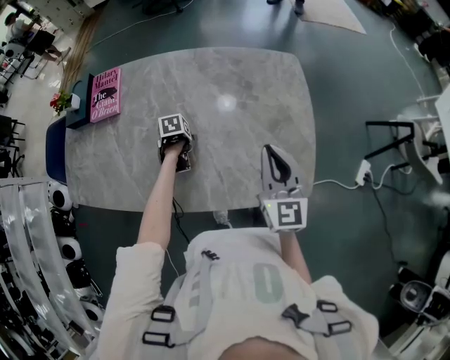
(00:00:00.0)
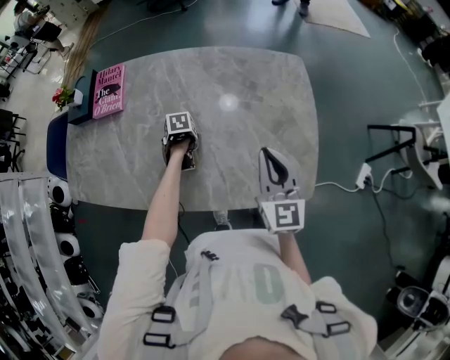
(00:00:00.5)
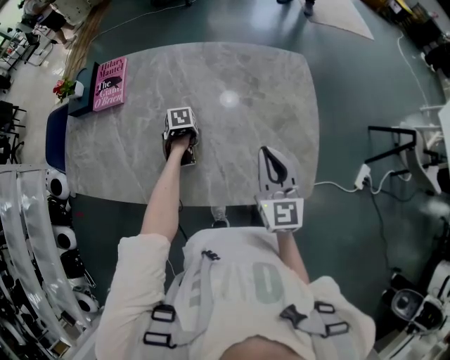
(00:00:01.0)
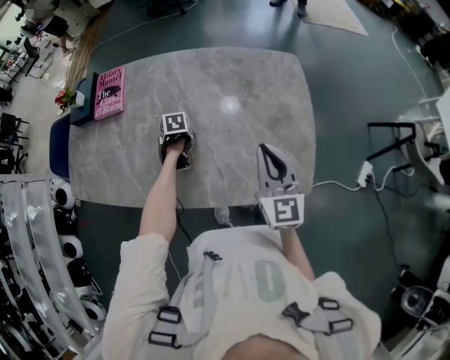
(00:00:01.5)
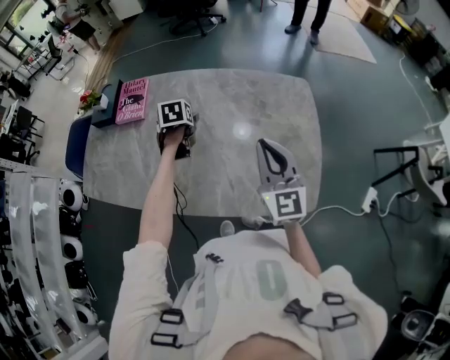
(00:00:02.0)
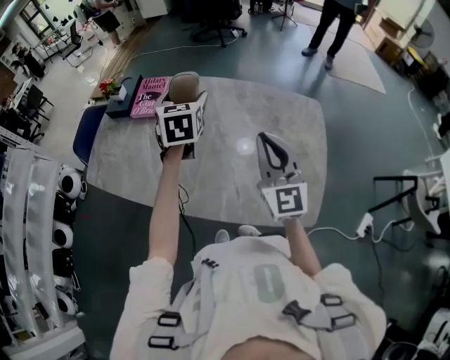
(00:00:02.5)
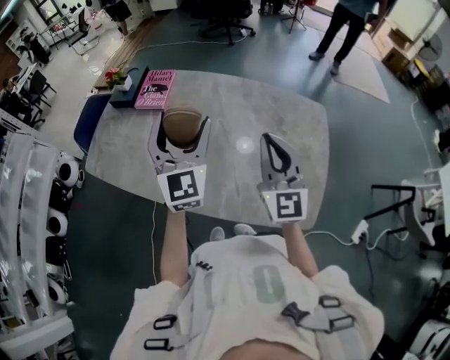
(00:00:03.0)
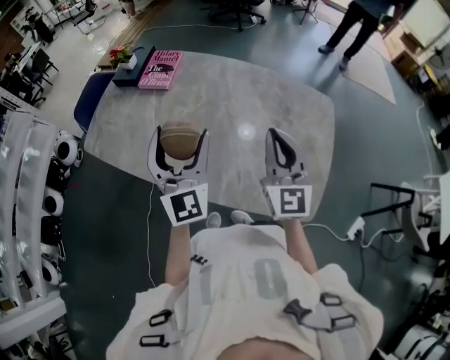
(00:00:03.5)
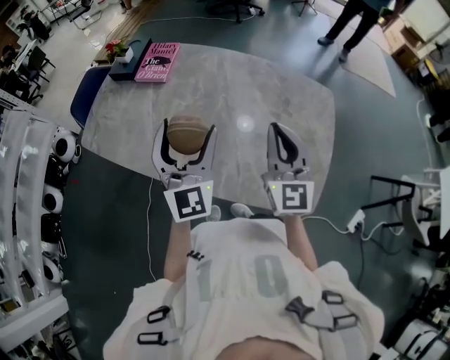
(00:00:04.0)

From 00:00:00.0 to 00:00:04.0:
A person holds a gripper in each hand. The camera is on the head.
From 00:00:00.0 to 00:00:02.0: The right gripper changes place by about 5 cm. The left gripper shifts some 15 cm upward, and changes its angle by approximately 30 degrees.
From 00:00:02.0 to 00:00:04.0: The right gripper shifts approximately 5 cm to the left. Meanwhile the left gripper shifts about 30 cm upward and backward, and tips its fingers upward by approximately 70 degrees.

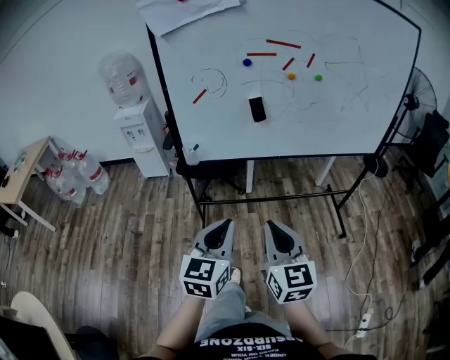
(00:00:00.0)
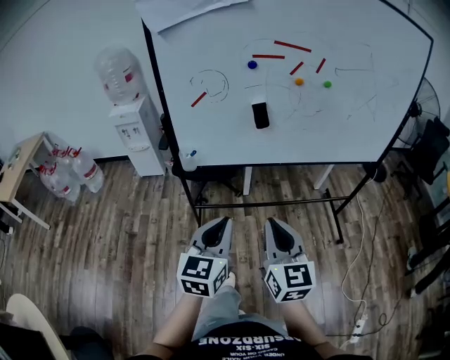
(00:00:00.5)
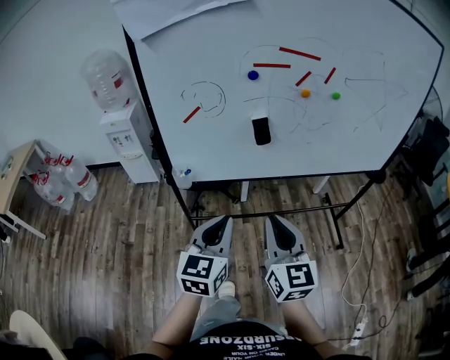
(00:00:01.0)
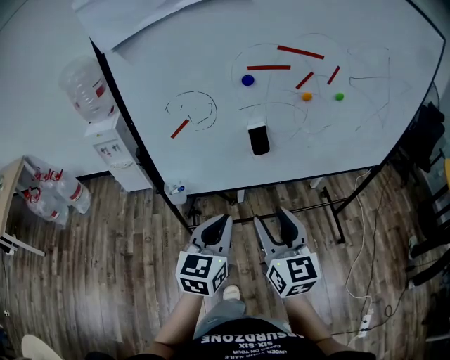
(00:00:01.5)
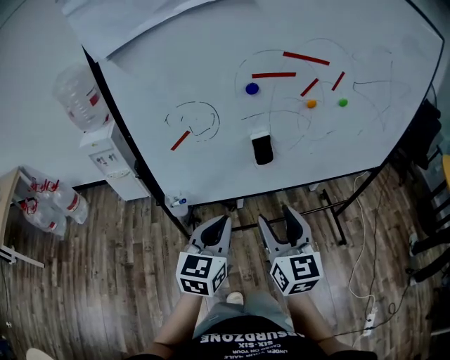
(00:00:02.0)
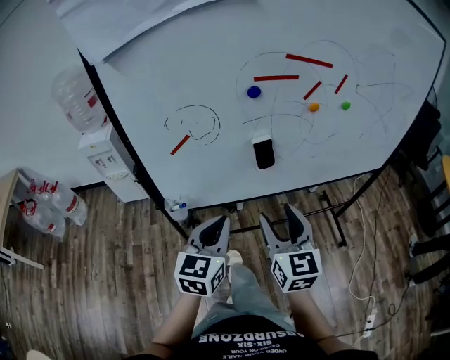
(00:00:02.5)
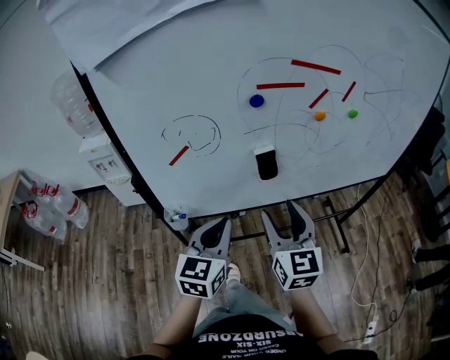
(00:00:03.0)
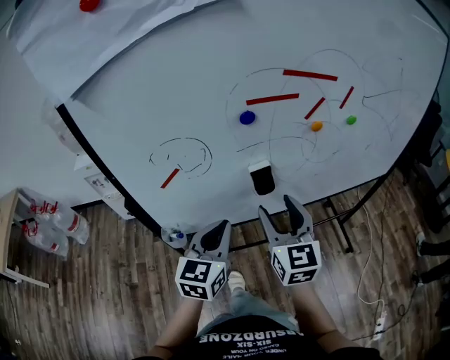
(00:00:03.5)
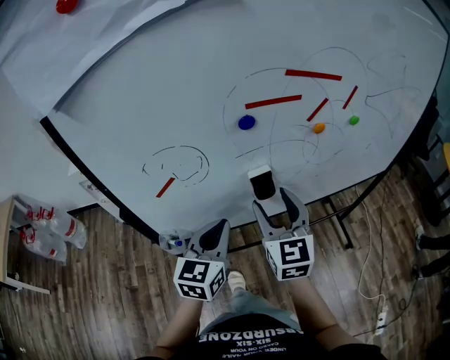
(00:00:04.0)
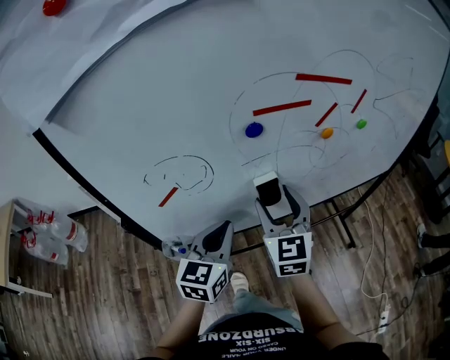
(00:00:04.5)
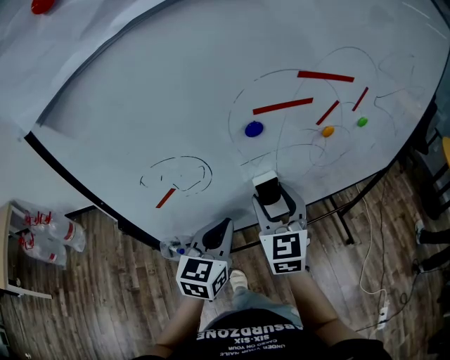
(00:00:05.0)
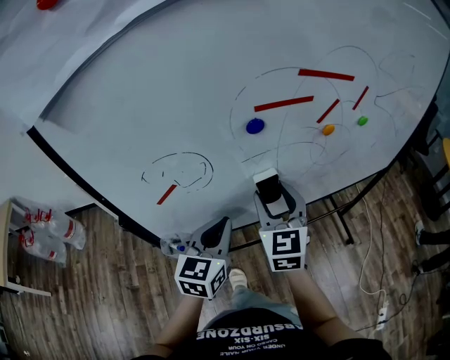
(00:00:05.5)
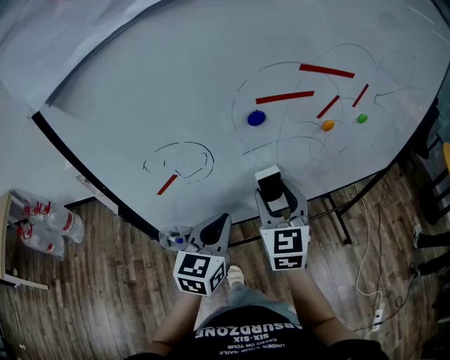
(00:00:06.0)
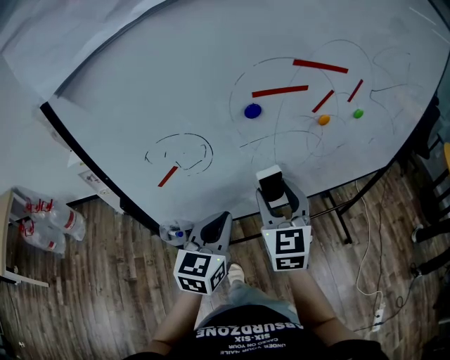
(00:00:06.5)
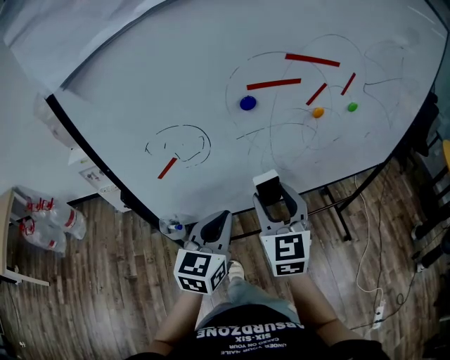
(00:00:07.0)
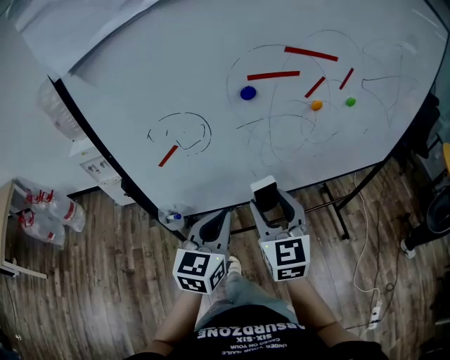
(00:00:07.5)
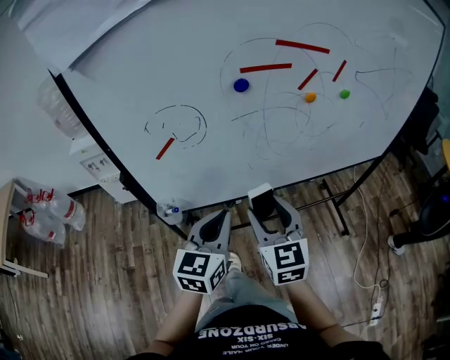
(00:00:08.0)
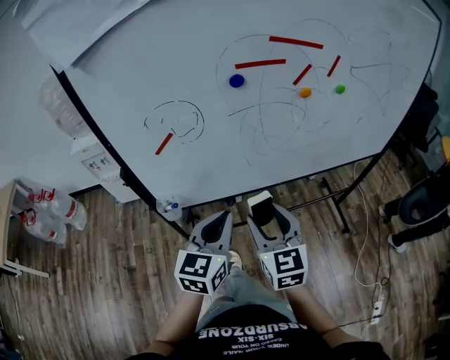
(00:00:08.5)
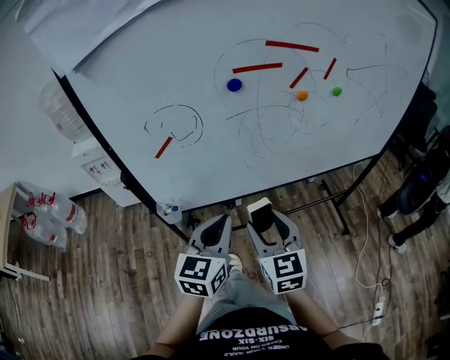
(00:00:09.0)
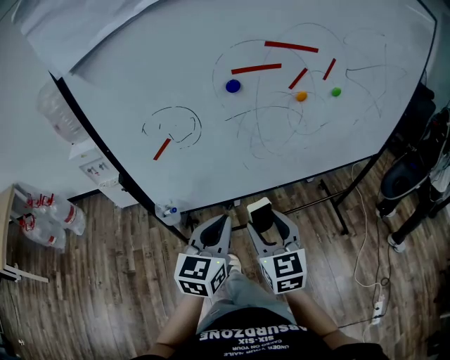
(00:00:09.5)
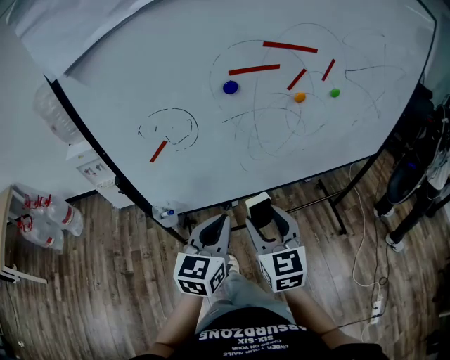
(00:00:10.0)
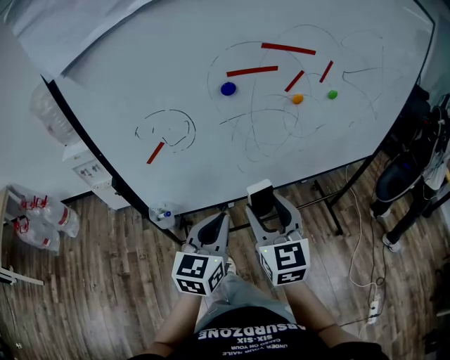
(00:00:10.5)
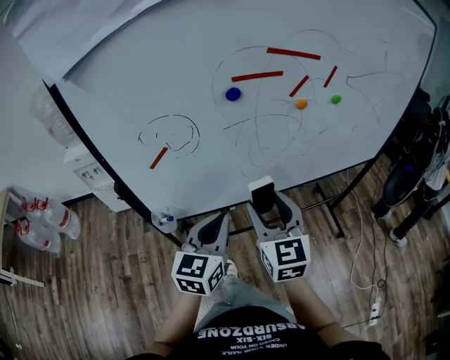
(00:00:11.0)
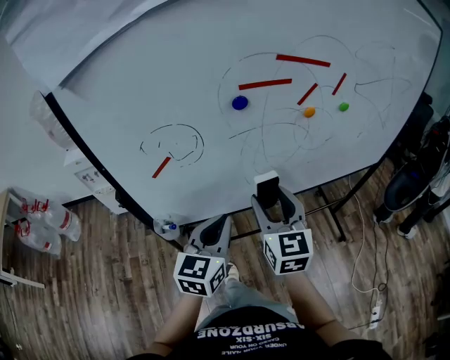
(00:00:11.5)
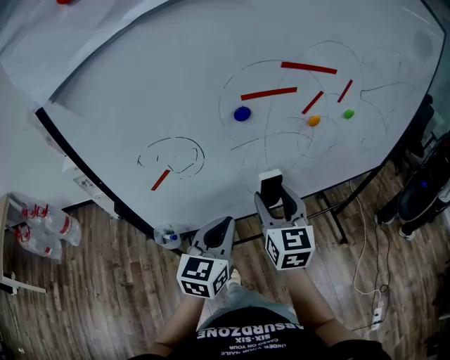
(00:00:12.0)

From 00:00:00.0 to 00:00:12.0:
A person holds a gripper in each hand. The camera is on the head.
From 00:00:00.0 to 00:00:02.0: Both grippers travel together forward, approximately 30 cm. The right gripper opens up.
From 00:00:02.0 to 00:00:04.0: Both grippers move forward, some 15 cm.
From 00:00:04.0 to 00:00:06.0: The grippers move only a little.
From 00:00:06.0 to 00:00:08.0: The two grippers go some 10 cm backward.
From 00:00:08.0 to 00:00:10.0: The grippers stay close to where they were, moving slightly.
From 00:00:10.0 to 00:00:12.0: The left gripper travels forward by approximately 5 cm, while the right gripper moves forward, some 10 cm.

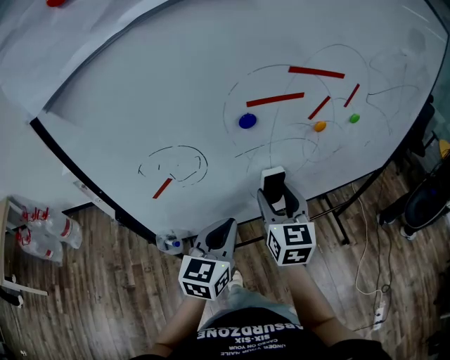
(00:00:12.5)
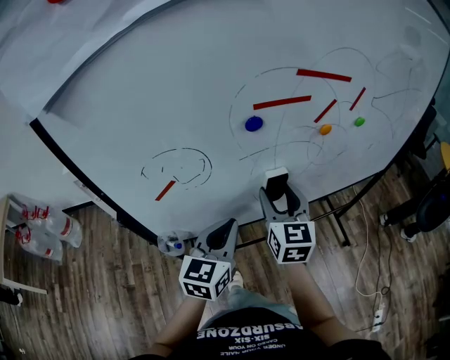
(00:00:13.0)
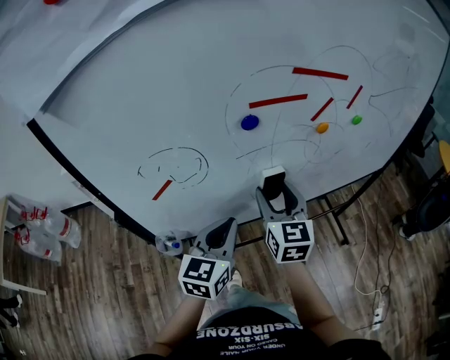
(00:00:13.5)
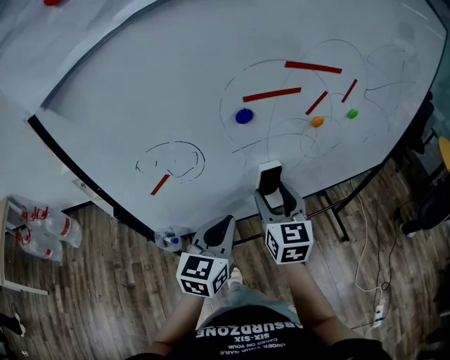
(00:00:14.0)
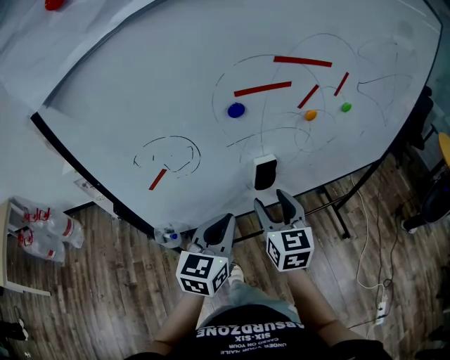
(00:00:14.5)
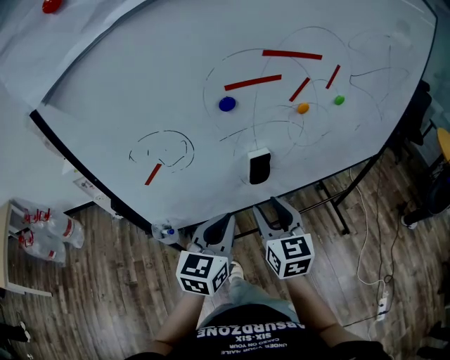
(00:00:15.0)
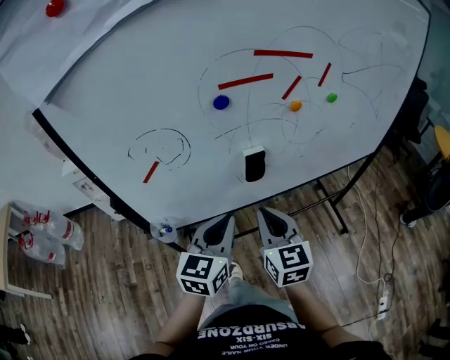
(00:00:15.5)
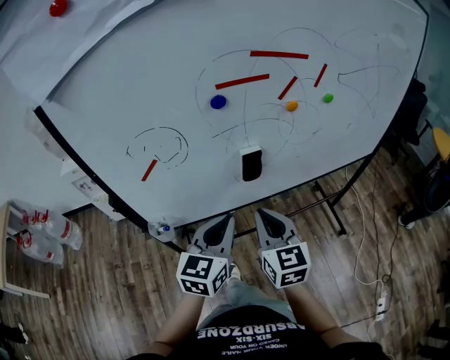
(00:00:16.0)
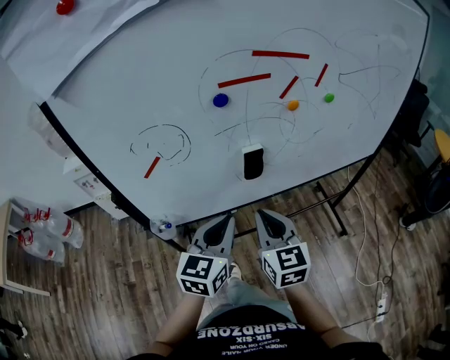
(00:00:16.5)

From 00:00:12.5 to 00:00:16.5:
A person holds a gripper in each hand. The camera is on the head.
From 00:00:12.5 to 00:00:14.5: The grippers move only a little.
From 00:00:14.5 to 00:00:16.5: The right gripper shifts about 10 cm backward, and closes.

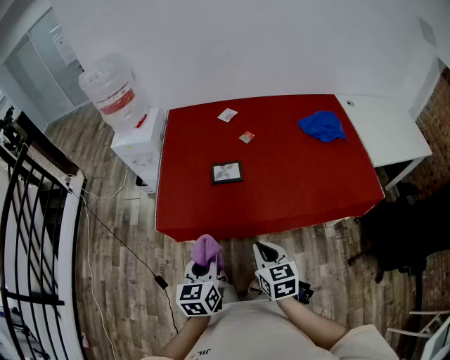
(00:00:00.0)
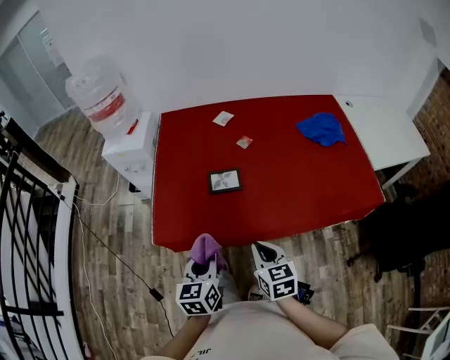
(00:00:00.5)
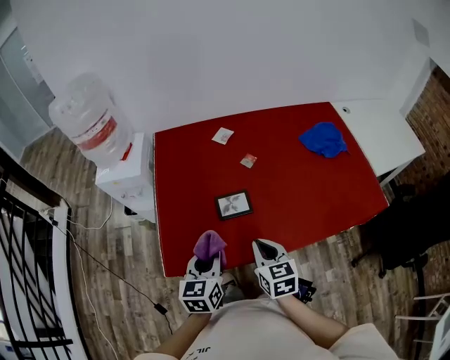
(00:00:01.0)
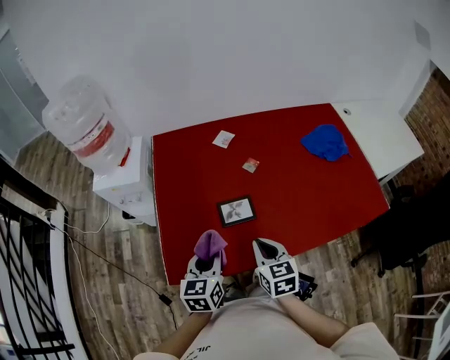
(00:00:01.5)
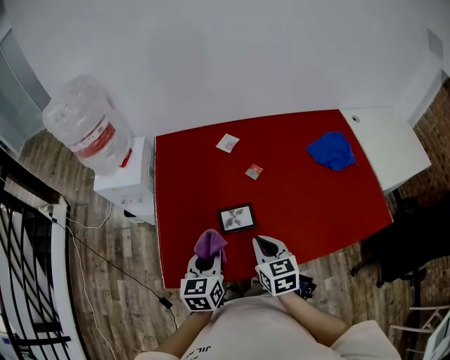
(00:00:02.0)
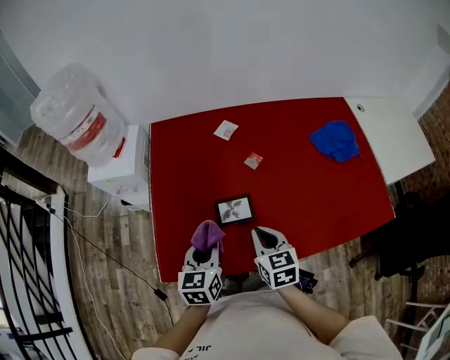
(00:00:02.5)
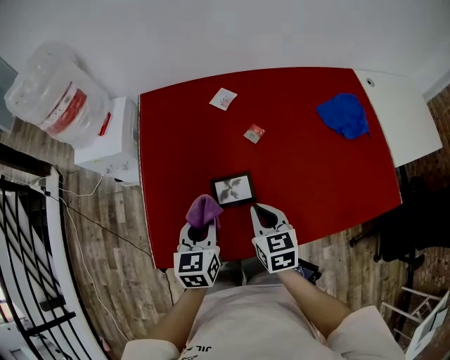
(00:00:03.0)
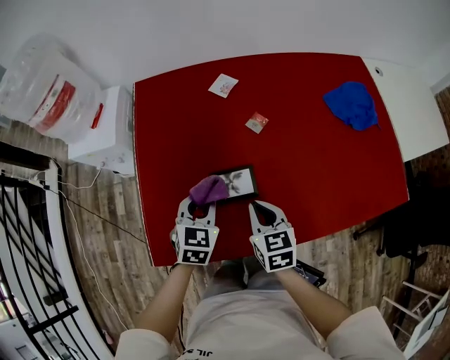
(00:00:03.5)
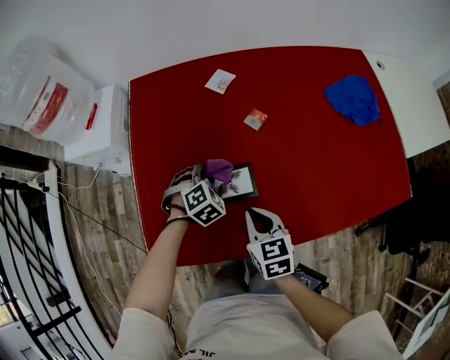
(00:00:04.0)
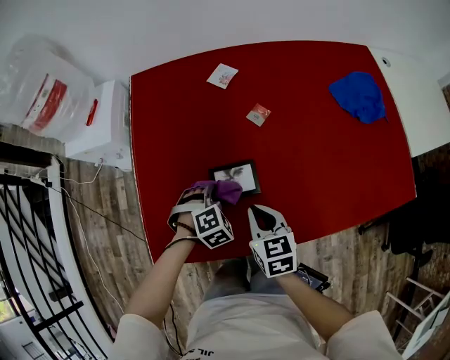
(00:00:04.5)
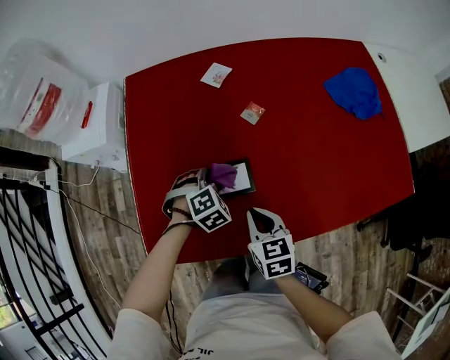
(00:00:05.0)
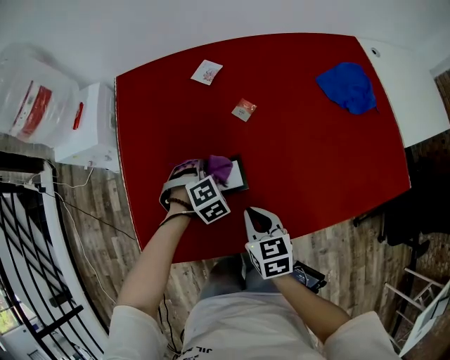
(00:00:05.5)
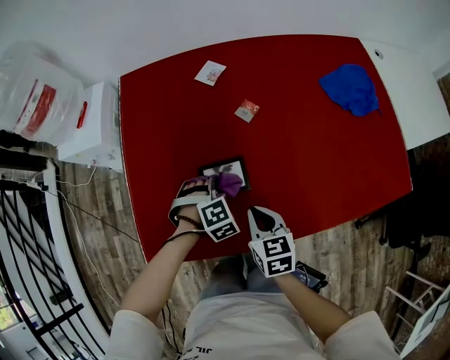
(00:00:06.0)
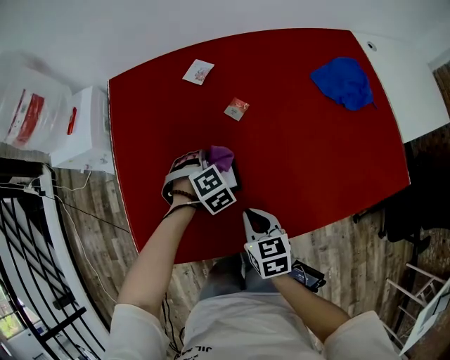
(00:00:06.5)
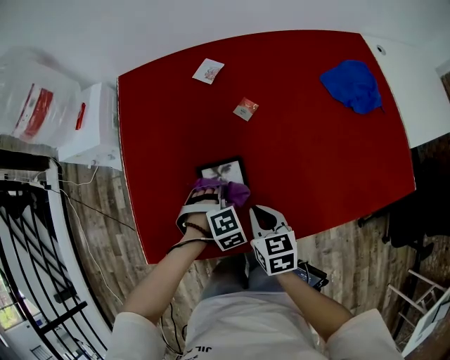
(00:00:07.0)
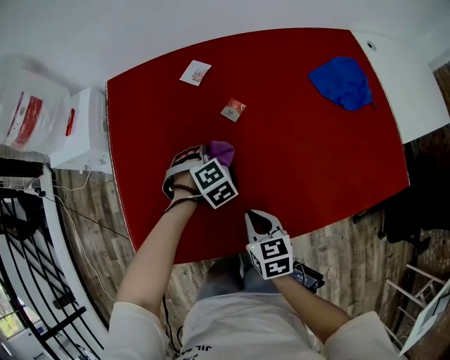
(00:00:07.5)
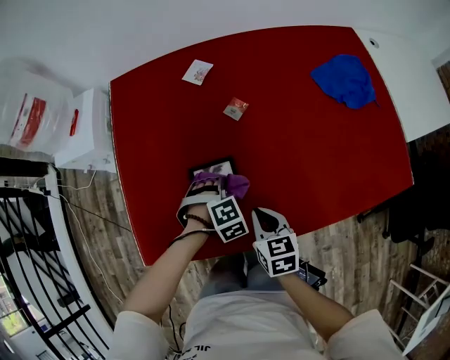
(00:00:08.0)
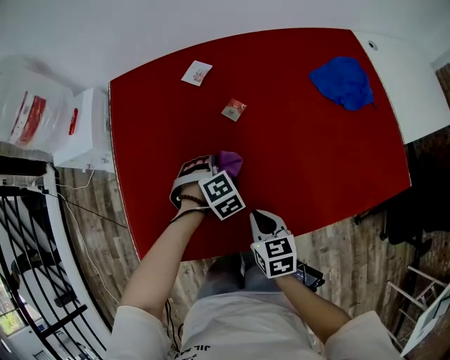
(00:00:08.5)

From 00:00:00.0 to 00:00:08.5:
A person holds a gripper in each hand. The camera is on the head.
From 00:00:00.0 to 00:00:02.0: Both grippers move forward, approximately 25 cm.
From 00:00:02.0 to 00:00:04.0: The left gripper shifts some 25 cm downward and forward, and twists roughly 60 degrees clockwise, seen from behind, while the right gripper shifts roughly 10 cm downward.
From 00:00:04.0 to 00:00:06.5: The right gripper moves roughly 5 cm, while the left gripper goes forward and backward, some 10 cm each way, reversing 3 times.
From 00:00:06.5 to 00:00:08.5: The left gripper moves forward and backward over some 10 cm, changing direction 3 times.
